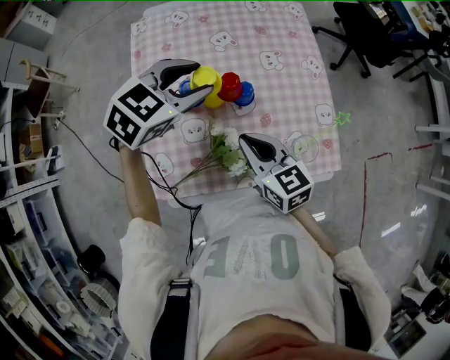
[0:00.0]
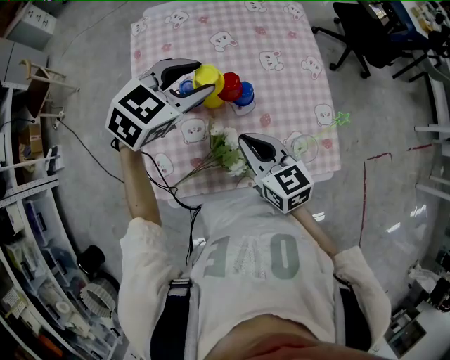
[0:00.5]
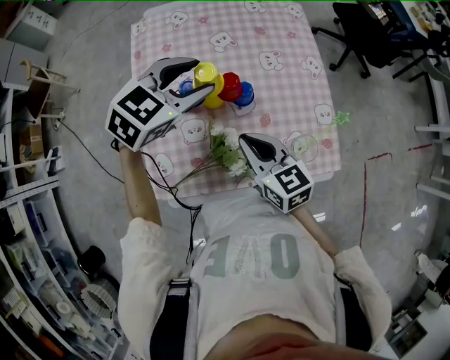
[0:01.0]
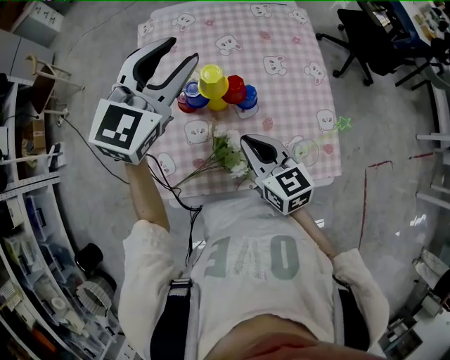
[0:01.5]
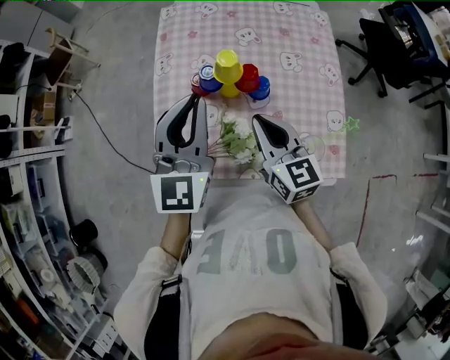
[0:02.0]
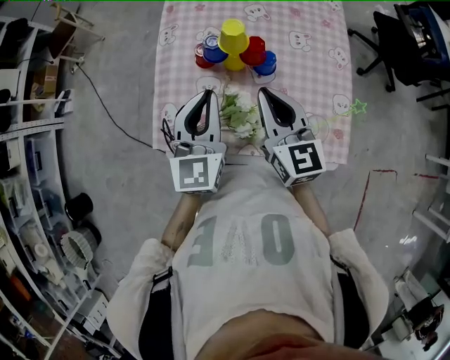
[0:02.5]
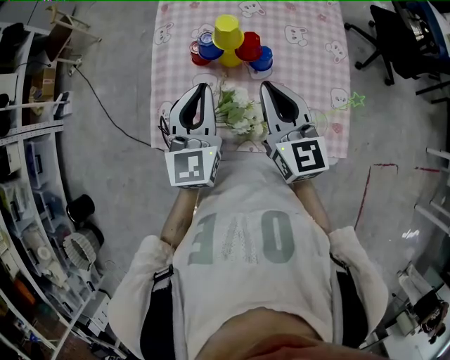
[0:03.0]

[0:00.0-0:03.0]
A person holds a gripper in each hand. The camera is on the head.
0:00.0 to 0:01.5: The left gripper shifts some 10 cm upward, and rotates roughly 30 degrees.
0:01.5 to 0:03.0: The right gripper travels upward by about 5 cm. Meanwhile the left gripper moves backward and downward, about 20 cm, swivels some 40 degrees, and closes.

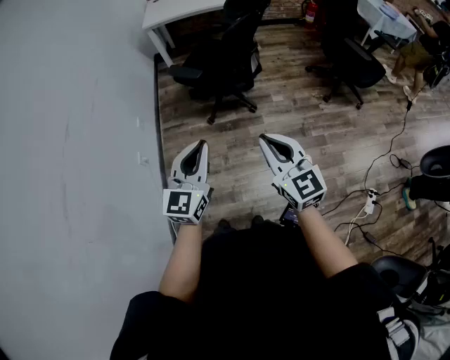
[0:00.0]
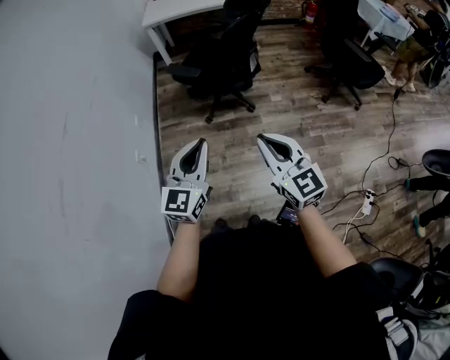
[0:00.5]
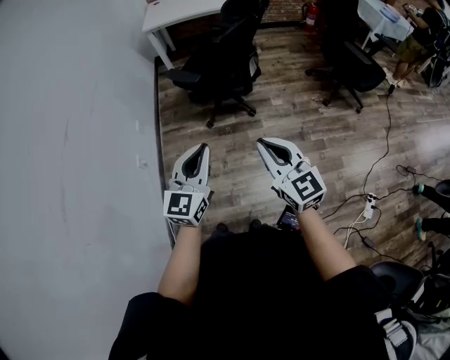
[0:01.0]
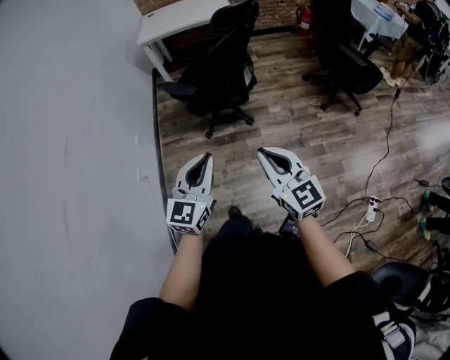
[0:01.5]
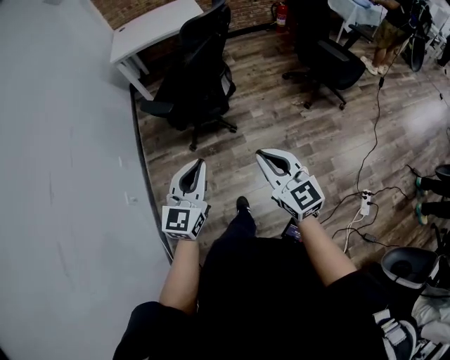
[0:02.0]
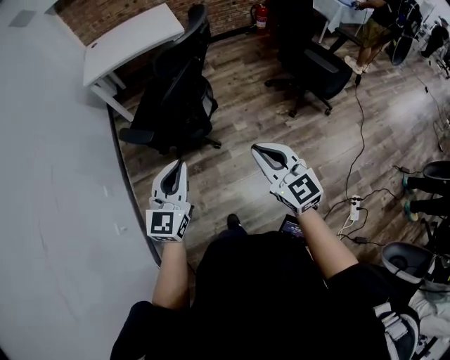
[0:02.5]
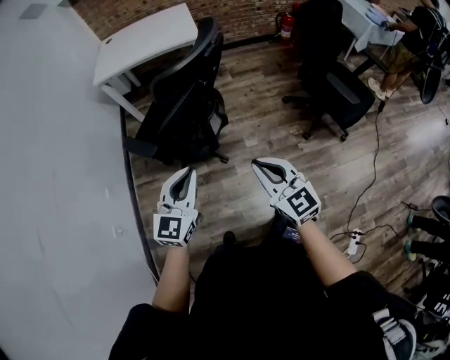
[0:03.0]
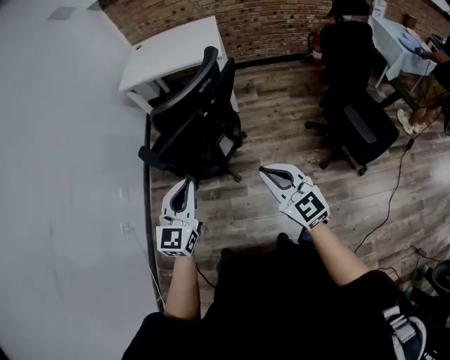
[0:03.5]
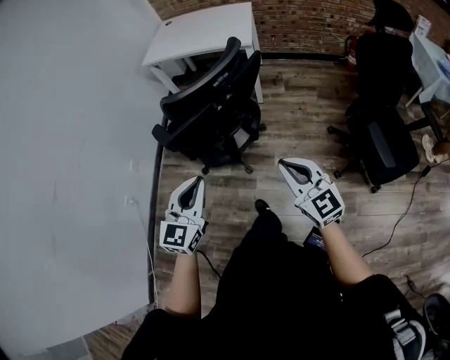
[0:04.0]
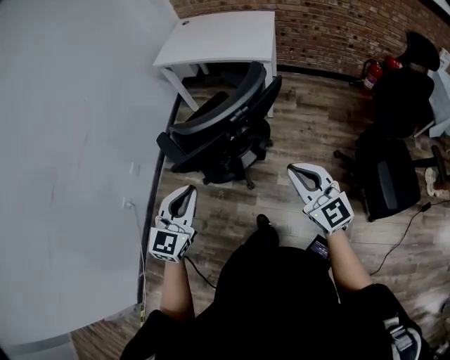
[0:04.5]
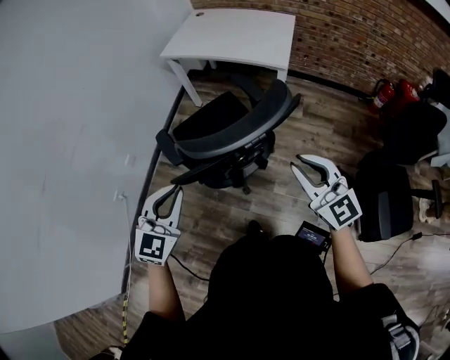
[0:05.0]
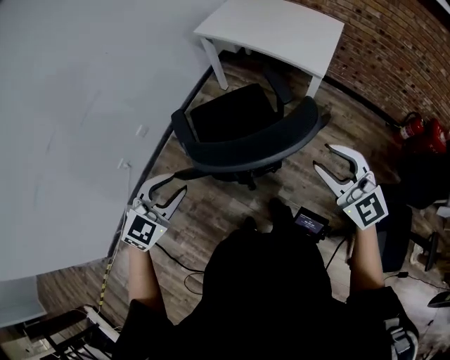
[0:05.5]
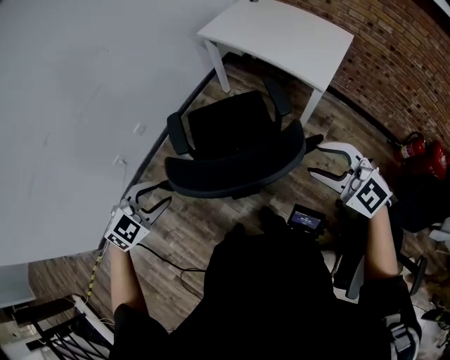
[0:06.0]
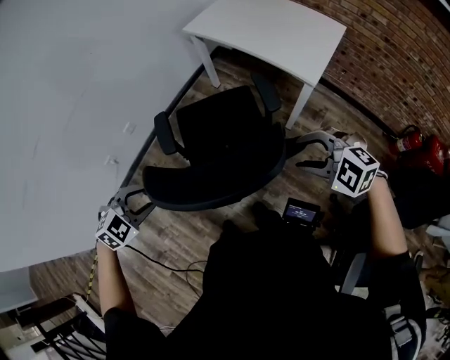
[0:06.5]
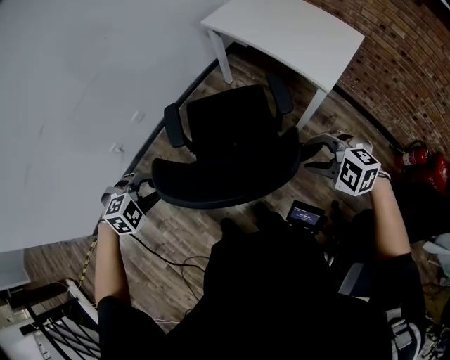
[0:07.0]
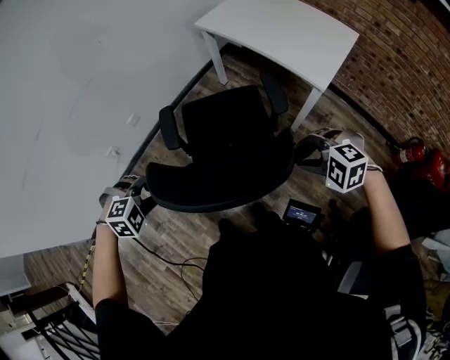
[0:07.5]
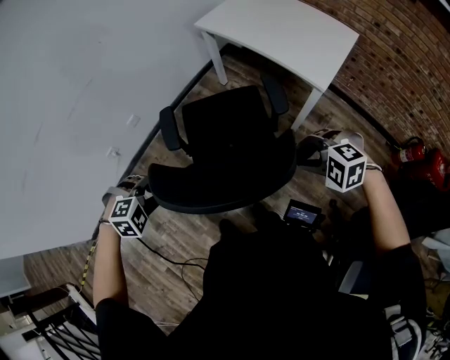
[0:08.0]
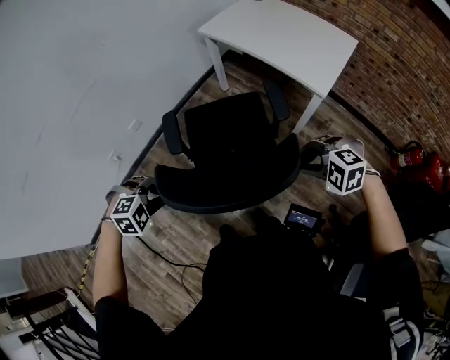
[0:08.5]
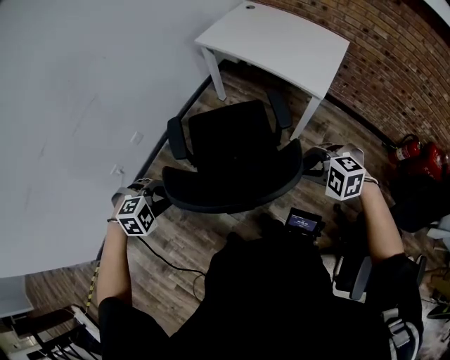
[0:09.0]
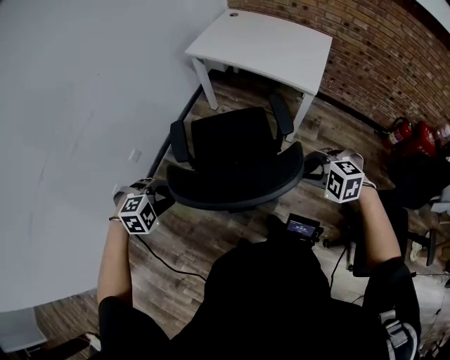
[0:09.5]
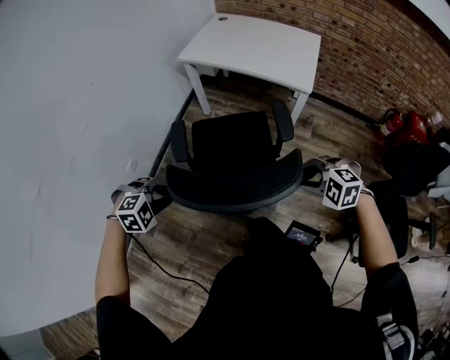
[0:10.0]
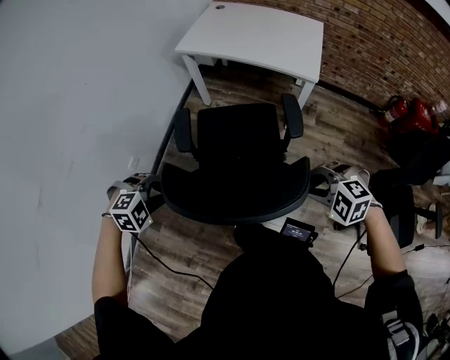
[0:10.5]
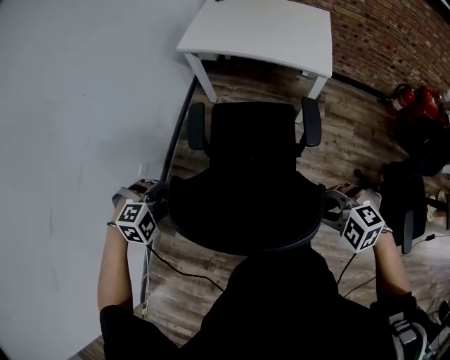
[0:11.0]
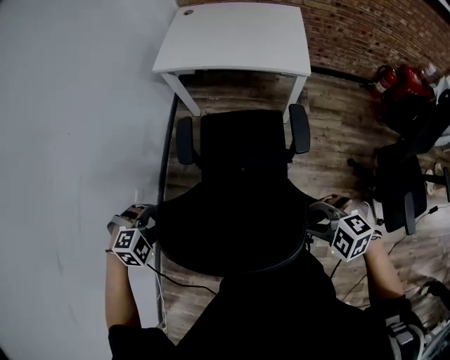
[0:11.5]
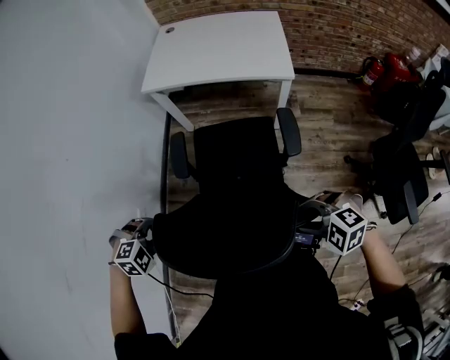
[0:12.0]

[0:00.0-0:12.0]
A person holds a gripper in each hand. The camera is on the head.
0:00.0 to 0:02.0: Both grippers move to the right and forward, roughly 15 cm.
0:02.0 to 0:04.0: The right gripper changes place by about 50 cm, and changes its angle by approximately 30 degrees; the left gripper shifts by approximately 40 cm, and turns by roughly 20 degrees.
0:04.0 to 0:06.0: The left gripper moves about 20 cm, points its fingers about 30 degrees further downward, and opens up. Meanwhile the right gripper changes place by roughly 35 cm, swivels about 60 degrees, and opens its fingers.
0:06.0 to 0:08.0: The two grippers go roughly 10 cm downward. The left gripper rotates some 30 degrees. The right gripper points its fingers roughly 40 degrees further downward.
0:08.0 to 0:10.0: The left gripper changes place by roughly 15 cm. The right gripper ends up about 15 cm from where it was, and swivels some 30 degrees.
0:10.0 to 0:12.0: The left gripper shifts by some 15 cm. Meanwhile the right gripper changes place by approximately 10 cm.

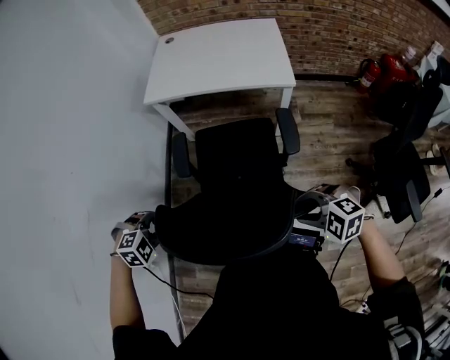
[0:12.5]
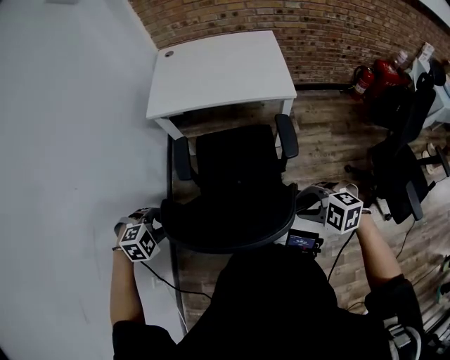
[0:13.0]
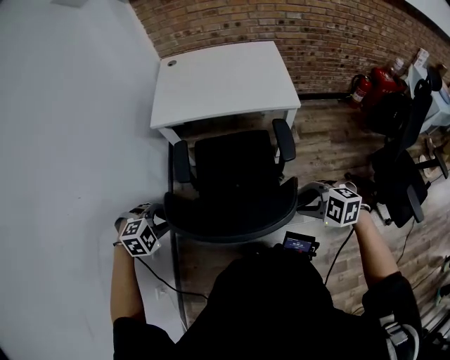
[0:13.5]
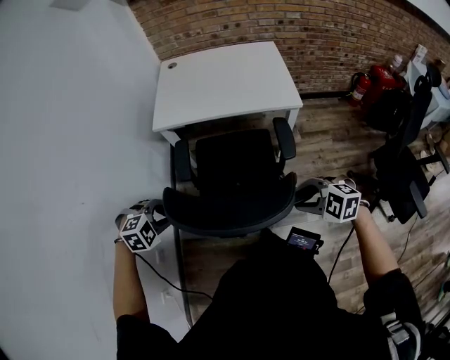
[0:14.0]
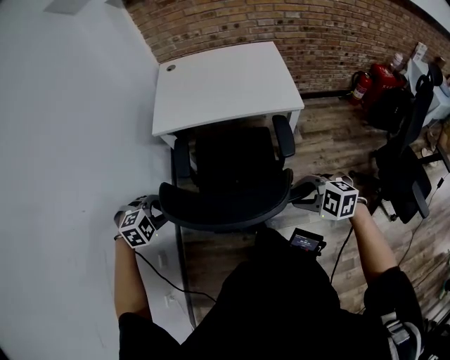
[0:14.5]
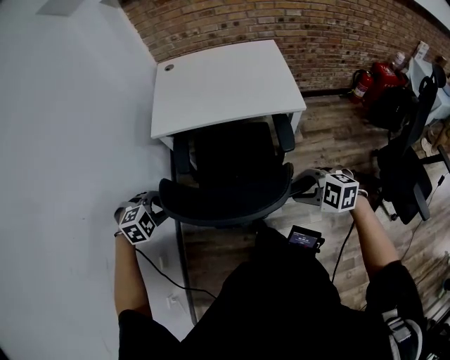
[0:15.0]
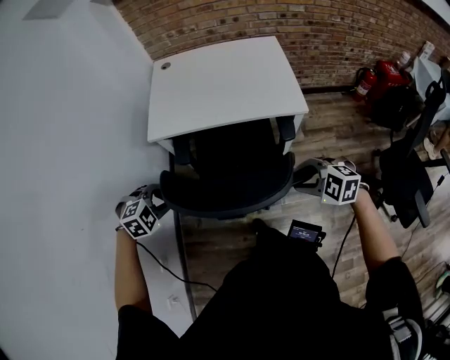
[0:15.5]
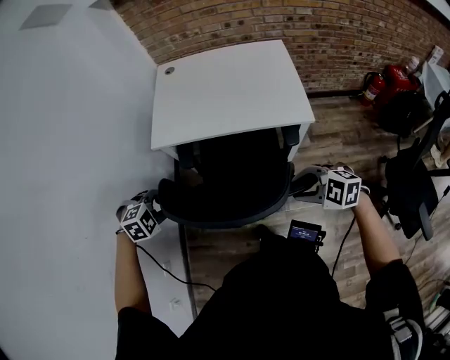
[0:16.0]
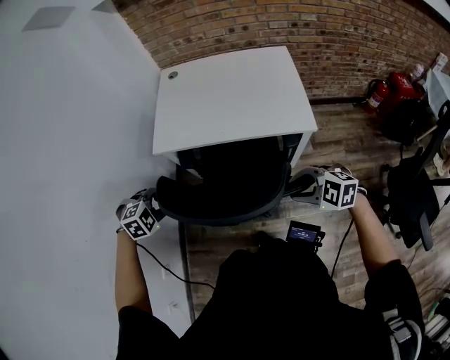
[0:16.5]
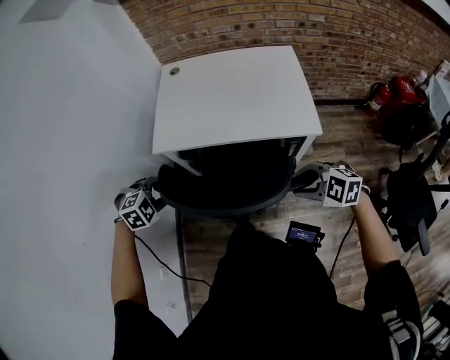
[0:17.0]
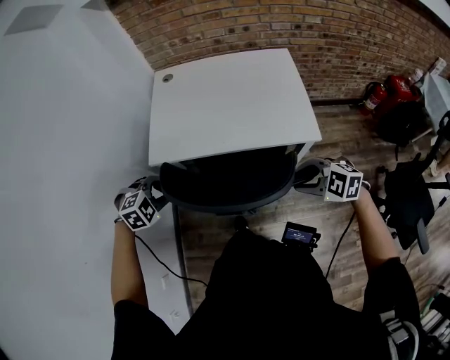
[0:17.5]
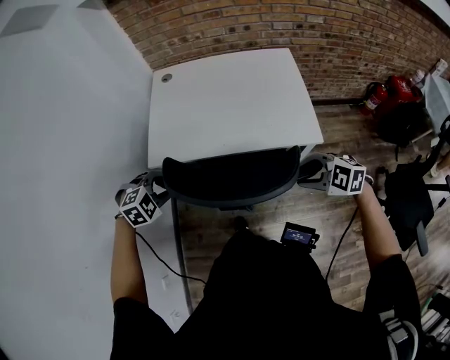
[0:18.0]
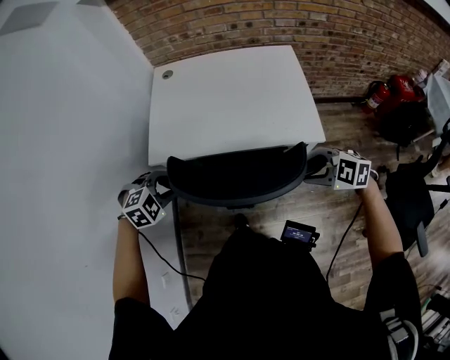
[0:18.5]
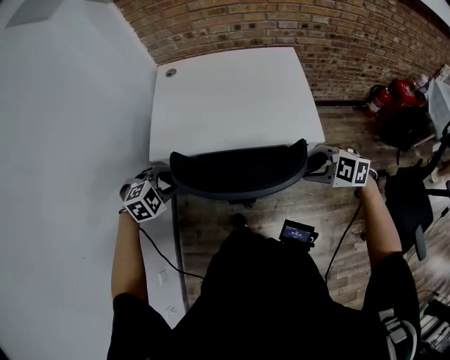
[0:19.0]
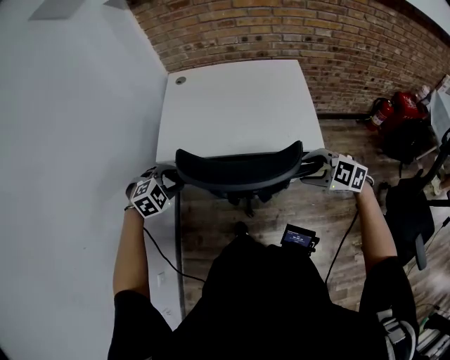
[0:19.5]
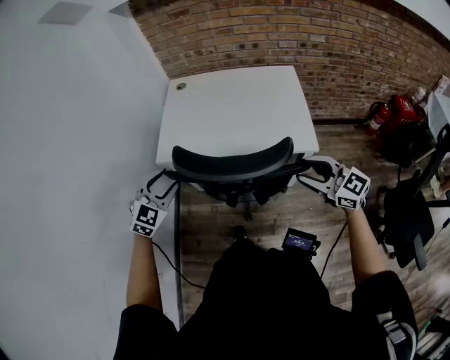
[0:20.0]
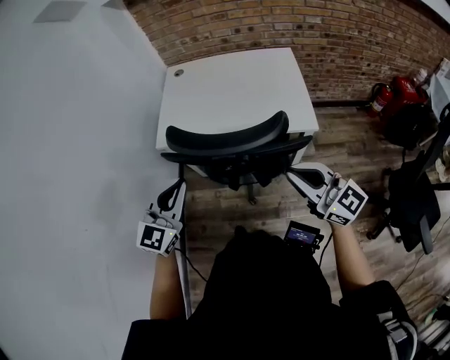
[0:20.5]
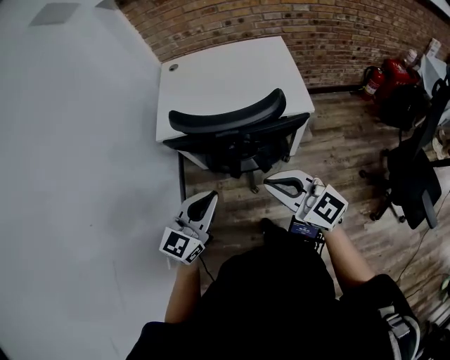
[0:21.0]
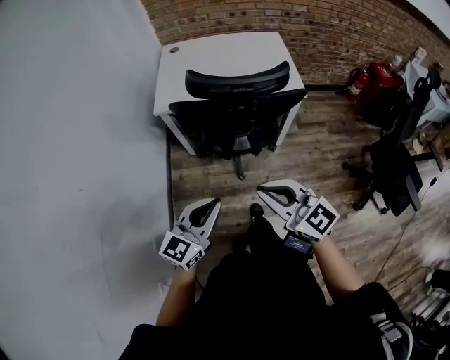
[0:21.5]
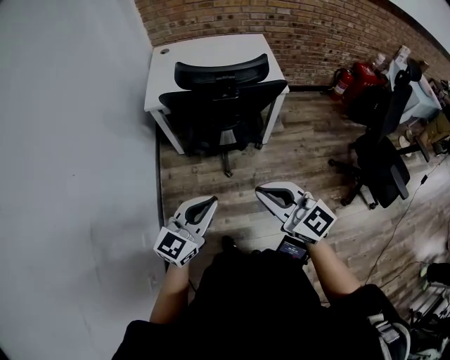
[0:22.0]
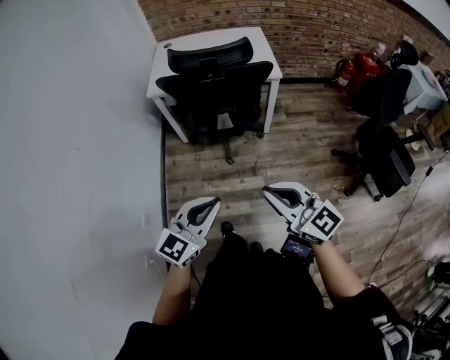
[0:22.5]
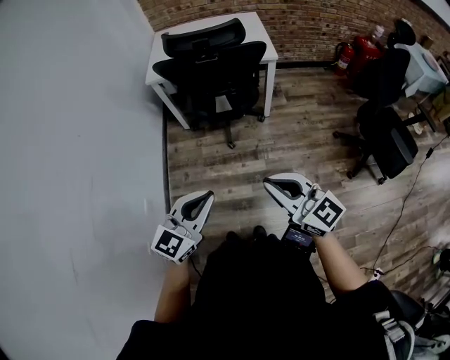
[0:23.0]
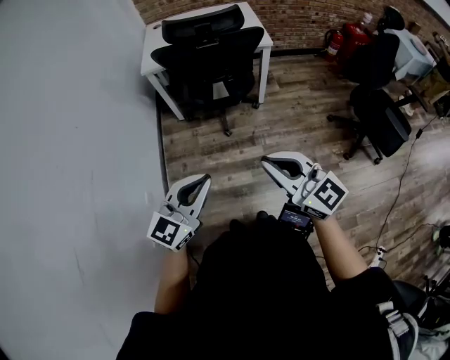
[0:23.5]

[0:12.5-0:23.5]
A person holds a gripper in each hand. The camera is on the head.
0:12.5 to 0:14.5: The left gripper moves roughly 20 cm. Meanwhile the right gripper moves some 15 cm.
0:14.5 to 0:16.0: The right gripper shifts by some 15 cm, while the left gripper ends up about 15 cm from where it was.
0:16.0 to 0:18.0: The left gripper shifts by about 15 cm, while the right gripper ends up roughly 15 cm from where it was.
0:18.0 to 0:20.0: The right gripper goes about 10 cm upward, and angles its fingers upward, by some 40 degrees. The left gripper is displaced upward and backward by approximately 10 cm, and points its fingers about 40 degrees further upward.
0:20.0 to 0:21.5: The right gripper goes about 35 cm backward and to the left, and closes its fingers. The left gripper heads backward, covering roughly 35 cm, swivels some 40 degrees, and closes its fingers.
0:21.5 to 0:23.5: The grippers both shift backward by roughly 25 cm.
